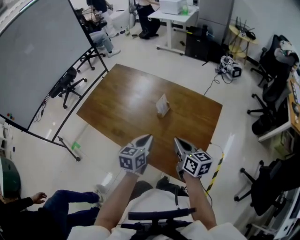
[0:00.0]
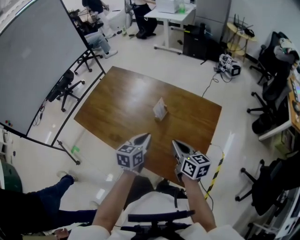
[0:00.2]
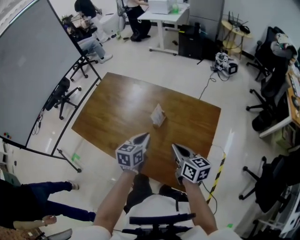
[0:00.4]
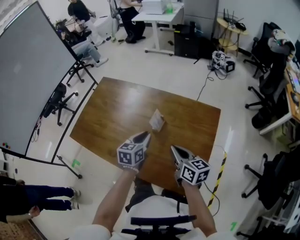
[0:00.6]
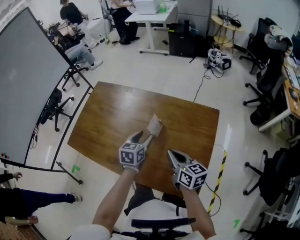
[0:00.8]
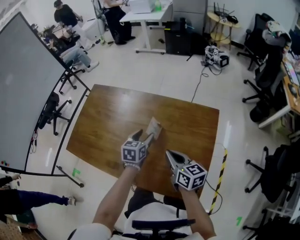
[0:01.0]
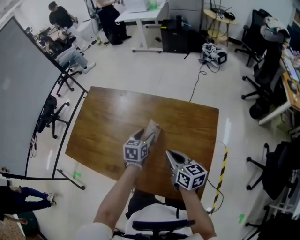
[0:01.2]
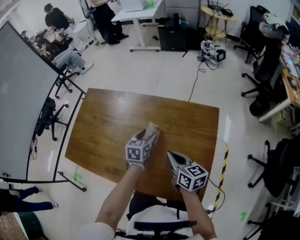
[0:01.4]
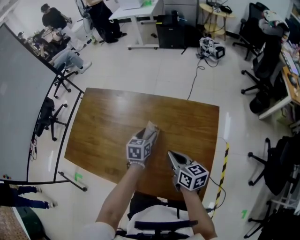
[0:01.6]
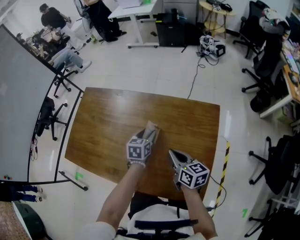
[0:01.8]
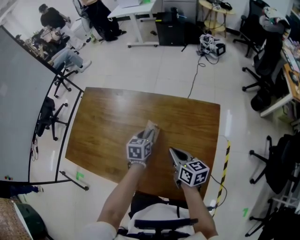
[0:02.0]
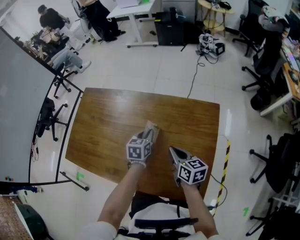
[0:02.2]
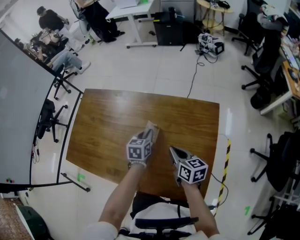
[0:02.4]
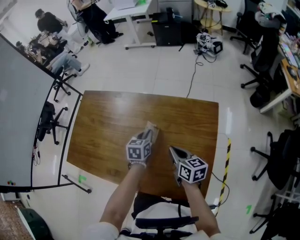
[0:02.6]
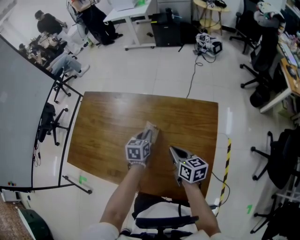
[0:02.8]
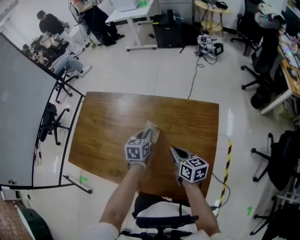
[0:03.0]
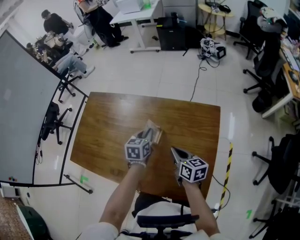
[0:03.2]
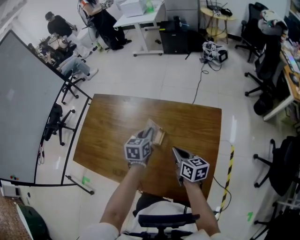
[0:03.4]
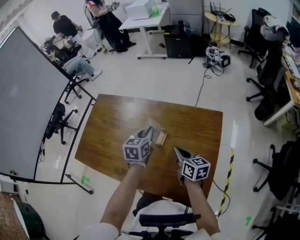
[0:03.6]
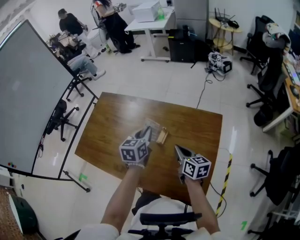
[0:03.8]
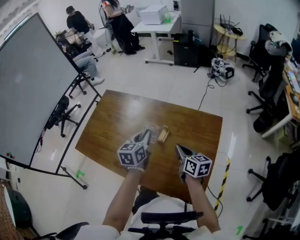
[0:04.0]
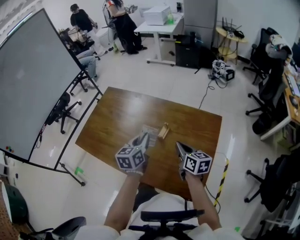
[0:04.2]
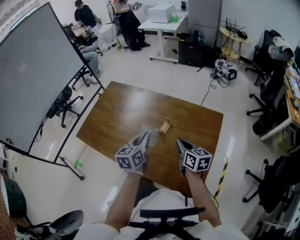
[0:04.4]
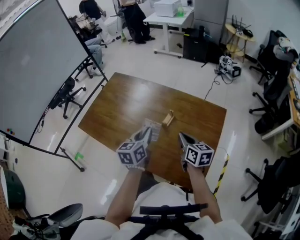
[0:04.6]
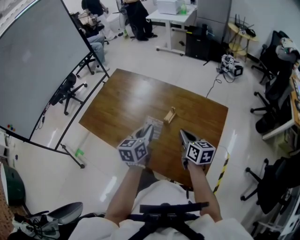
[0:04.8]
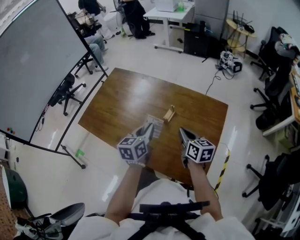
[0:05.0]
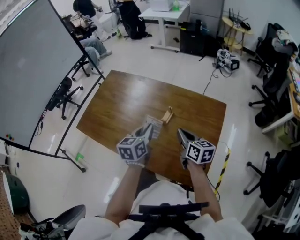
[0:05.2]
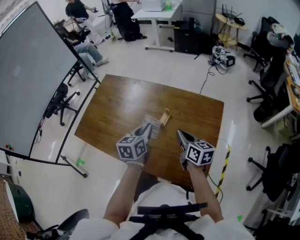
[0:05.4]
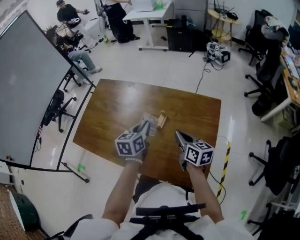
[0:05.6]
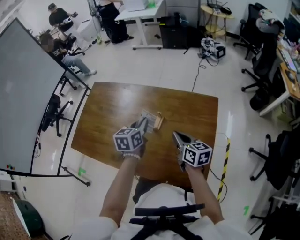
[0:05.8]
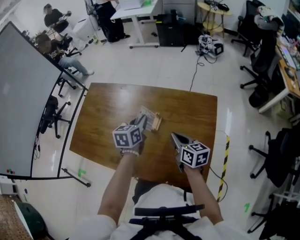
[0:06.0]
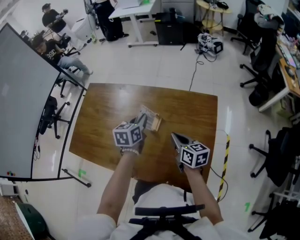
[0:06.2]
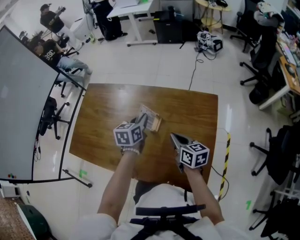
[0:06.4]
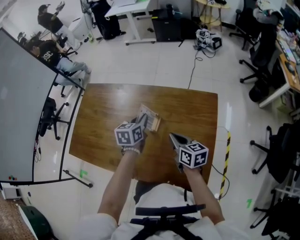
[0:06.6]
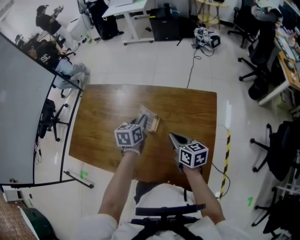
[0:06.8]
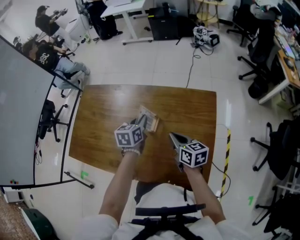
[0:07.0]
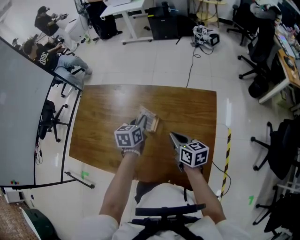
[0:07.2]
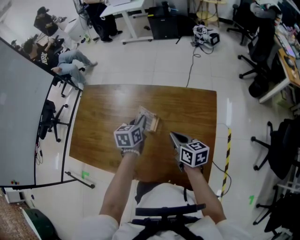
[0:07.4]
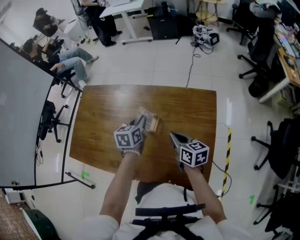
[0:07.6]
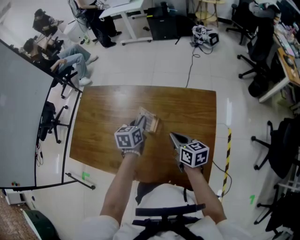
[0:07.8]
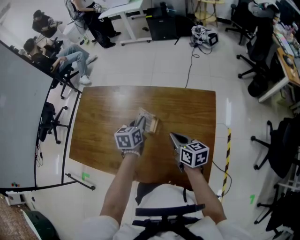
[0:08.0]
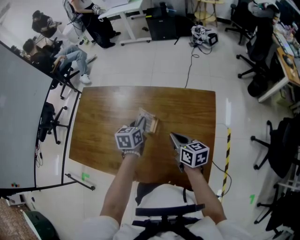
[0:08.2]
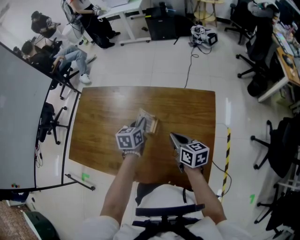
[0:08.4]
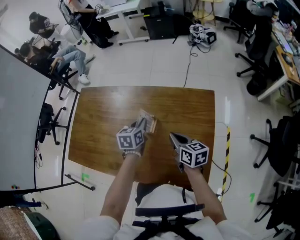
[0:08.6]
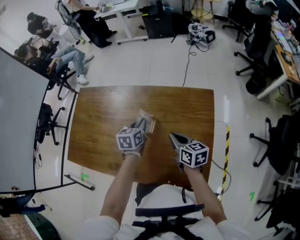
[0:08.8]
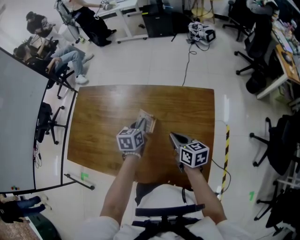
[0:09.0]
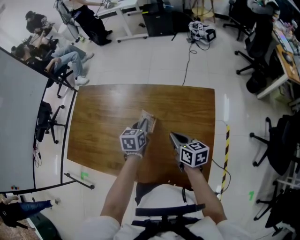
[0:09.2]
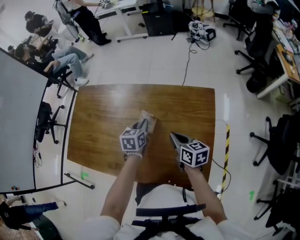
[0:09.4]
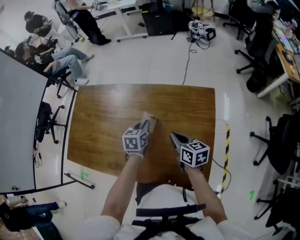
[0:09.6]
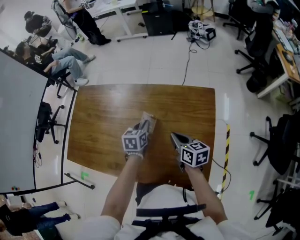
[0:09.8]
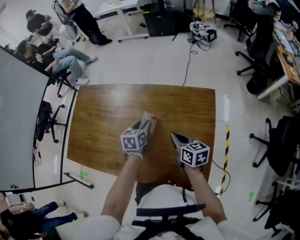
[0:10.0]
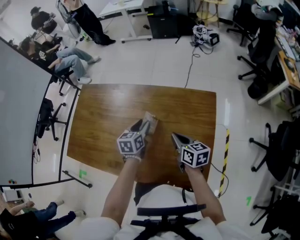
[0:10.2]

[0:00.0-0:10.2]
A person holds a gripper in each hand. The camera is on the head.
0:00.0 to 0:01.4: The left gripper heads forward and downward, covering approximately 25 cm, and opens, while the right gripper moves forward and downward, roughly 15 cm.
0:01.4 to 0:03.0: The left gripper closes its fingers, while the right gripper shifts by approximately 5 cm.
0:03.0 to 0:04.4: The left gripper heads upward, backward and to the left, covering roughly 20 cm, and changes its angle by about 20 degrees. Meanwhile the right gripper travels upward by some 5 cm.
0:04.4 to 0:05.8: The left gripper shifts roughly 10 cm forward.
0:05.8 to 0:07.2: The left gripper is displaced downward and forward by roughly 10 cm.
0:07.2 to 0:08.8: The grippers make only small movements.
0:08.8 to 0:10.2: The left gripper opens up.

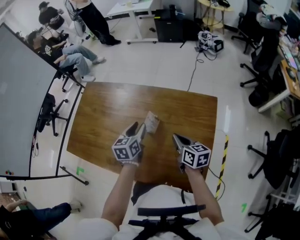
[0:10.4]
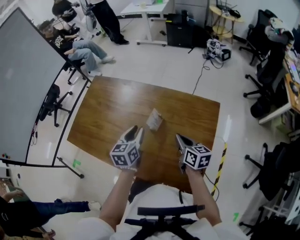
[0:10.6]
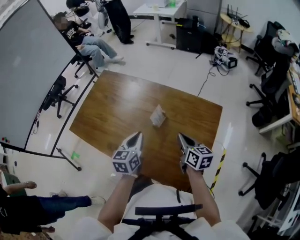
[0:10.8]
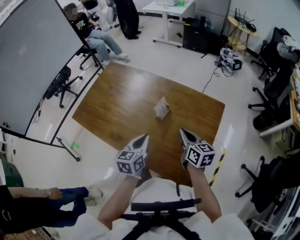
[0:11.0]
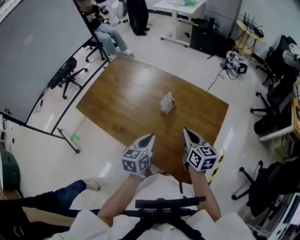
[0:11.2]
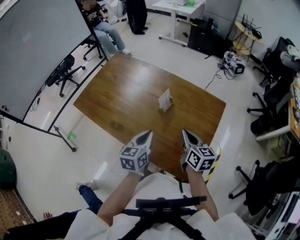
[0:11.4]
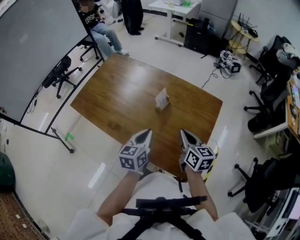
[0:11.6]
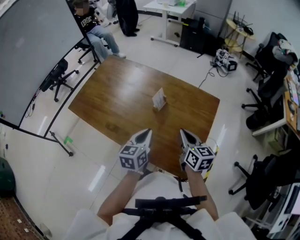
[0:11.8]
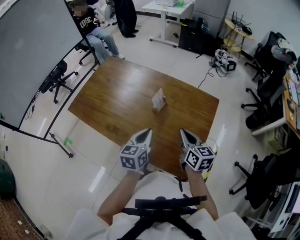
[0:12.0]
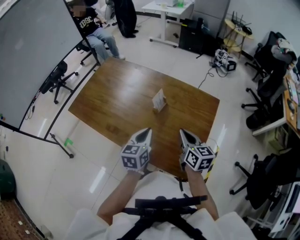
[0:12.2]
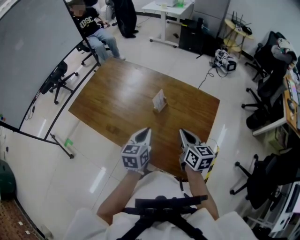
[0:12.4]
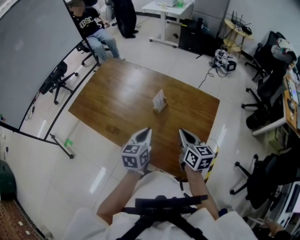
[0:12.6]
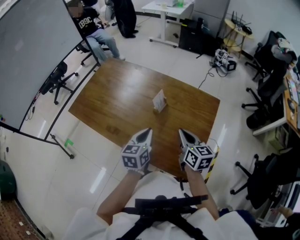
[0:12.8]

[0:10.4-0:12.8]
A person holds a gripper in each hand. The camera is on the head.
0:10.4 to 0:11.6: The left gripper shifts approximately 20 cm backward, and closes. Meanwhile the right gripper travels backward and upward by roughly 15 cm.
0:11.6 to 0:12.8: There are only small adjustments of the grippers.

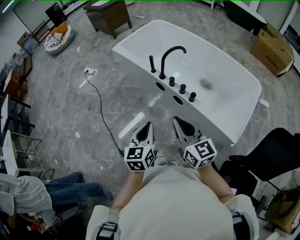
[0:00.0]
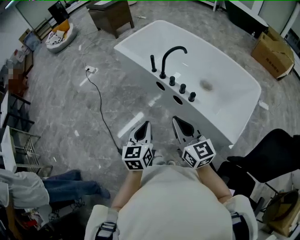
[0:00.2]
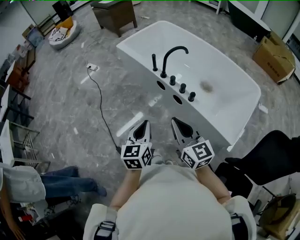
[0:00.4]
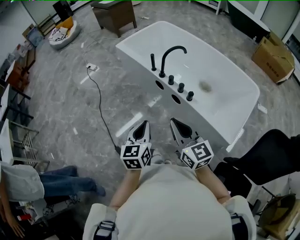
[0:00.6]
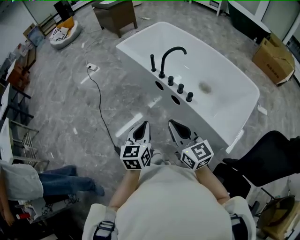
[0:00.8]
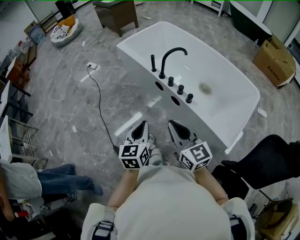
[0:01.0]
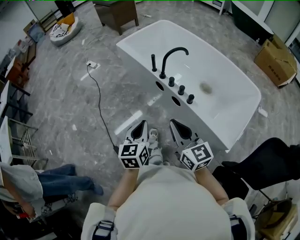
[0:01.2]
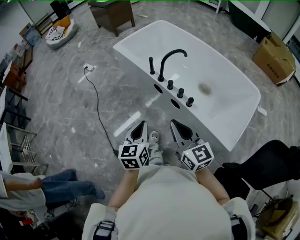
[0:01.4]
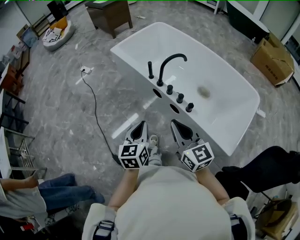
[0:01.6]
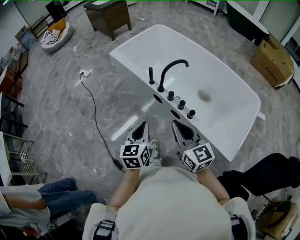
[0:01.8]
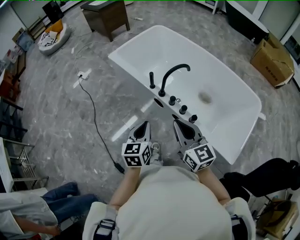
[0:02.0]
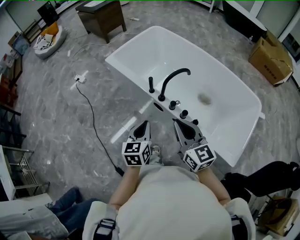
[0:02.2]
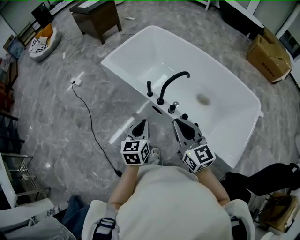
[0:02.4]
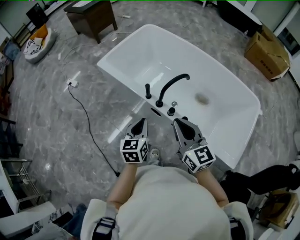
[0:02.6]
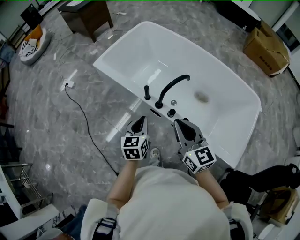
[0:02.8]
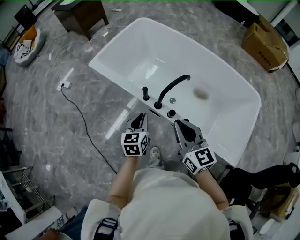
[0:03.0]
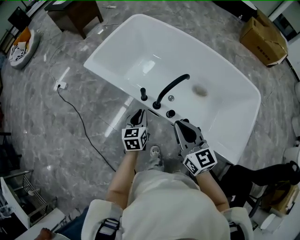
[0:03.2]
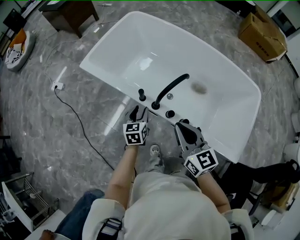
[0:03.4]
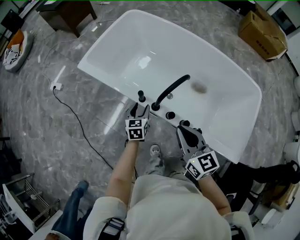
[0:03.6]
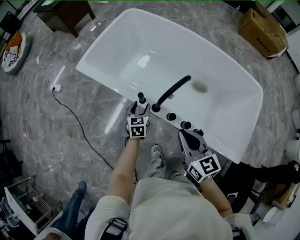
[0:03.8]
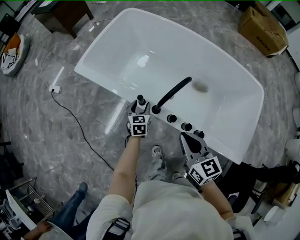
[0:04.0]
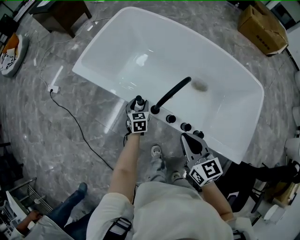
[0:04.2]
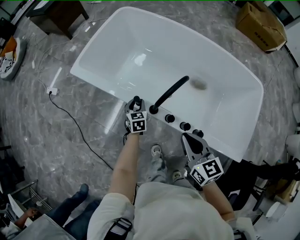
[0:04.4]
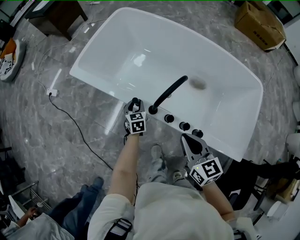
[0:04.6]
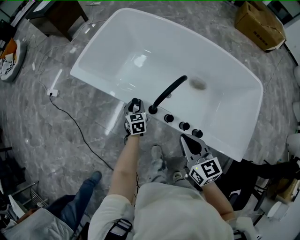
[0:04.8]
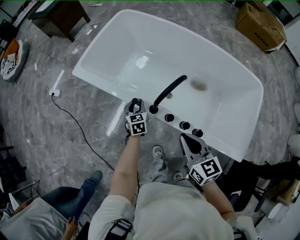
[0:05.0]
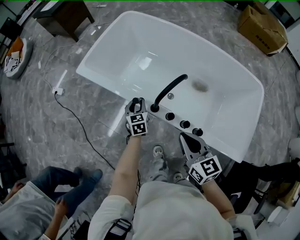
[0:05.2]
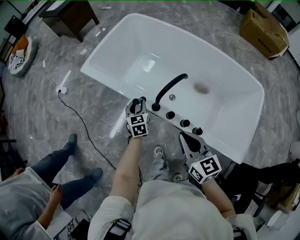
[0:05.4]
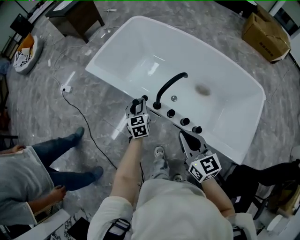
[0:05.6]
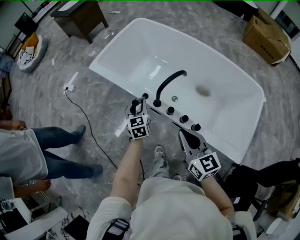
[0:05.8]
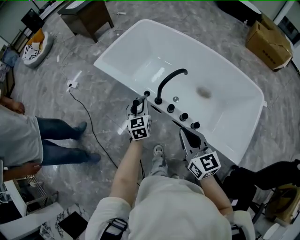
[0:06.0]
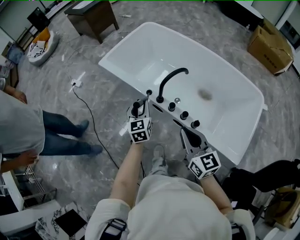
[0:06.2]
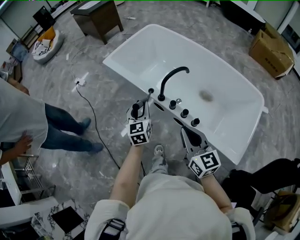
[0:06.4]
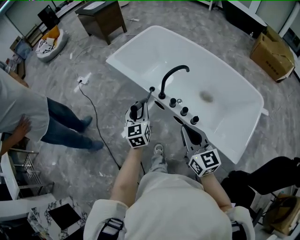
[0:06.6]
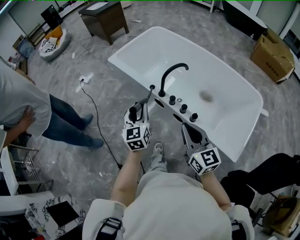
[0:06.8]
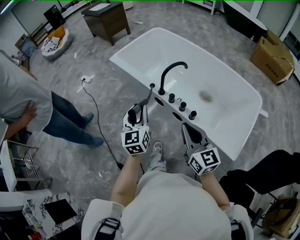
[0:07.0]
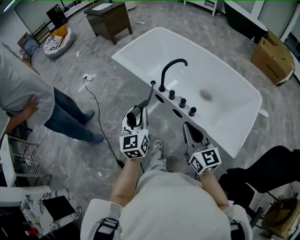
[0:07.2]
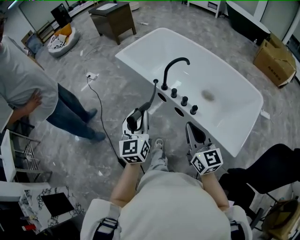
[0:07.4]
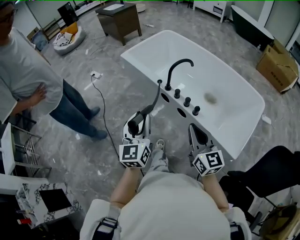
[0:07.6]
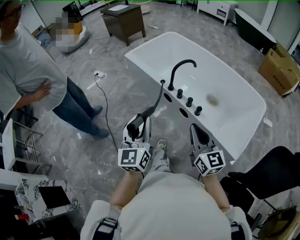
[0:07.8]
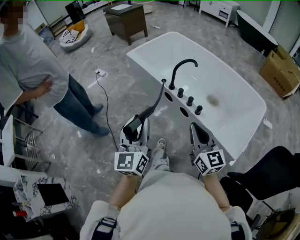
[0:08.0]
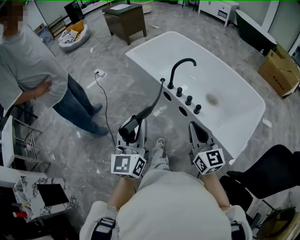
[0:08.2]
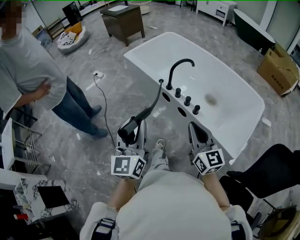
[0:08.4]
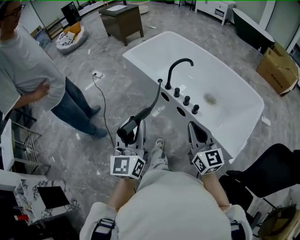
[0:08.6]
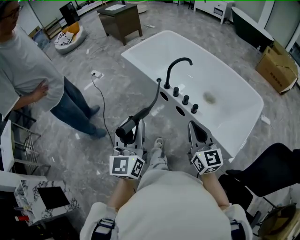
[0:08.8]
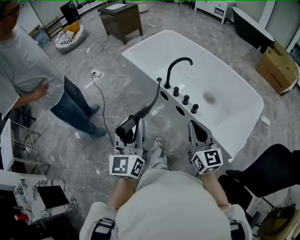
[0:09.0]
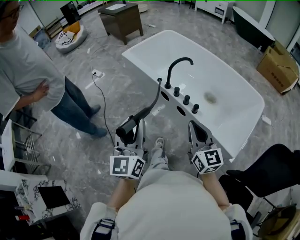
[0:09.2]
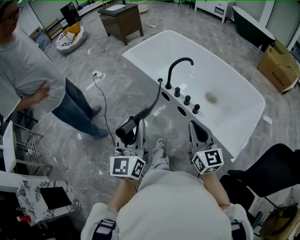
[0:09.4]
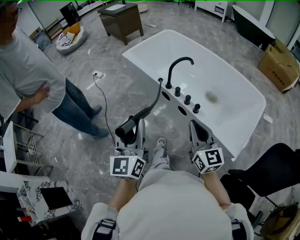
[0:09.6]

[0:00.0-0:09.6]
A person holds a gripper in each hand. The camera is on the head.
0:00.0 to 0:01.6: Both grippers move forward, approximately 5 cm.
0:01.6 to 0:03.2: Both grippers move forward, roughly 30 cm.
0:03.2 to 0:04.8: The right gripper goes roughly 5 cm downward, while the left gripper travels downward and forward by approximately 20 cm, and opens up.
0:04.8 to 0:06.4: The right gripper is displaced backward and upward by roughly 15 cm, while the left gripper travels upward and backward by about 30 cm, and rotates roughly 30 degrees.
0:06.4 to 0:08.0: The right gripper travels backward by approximately 20 cm; the left gripper travels backward and upward by some 35 cm, and swivels roughly 20 degrees.
0:08.0 to 0:09.6: The grippers make only small movements.

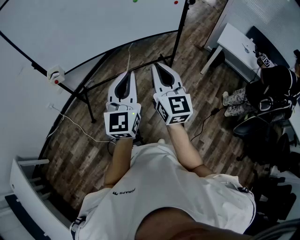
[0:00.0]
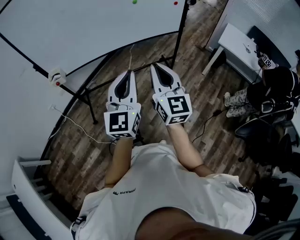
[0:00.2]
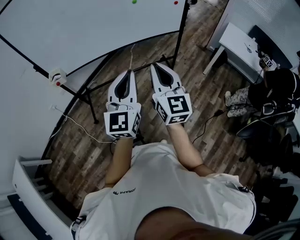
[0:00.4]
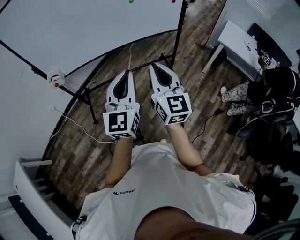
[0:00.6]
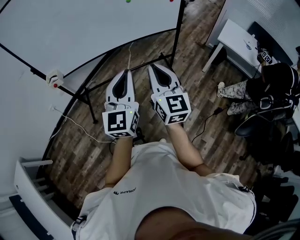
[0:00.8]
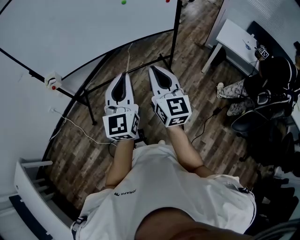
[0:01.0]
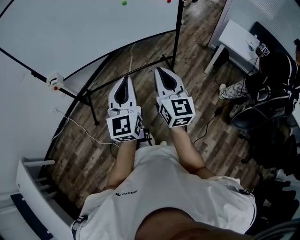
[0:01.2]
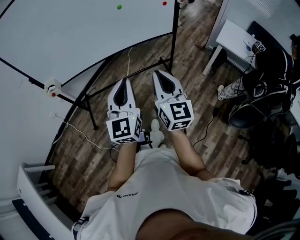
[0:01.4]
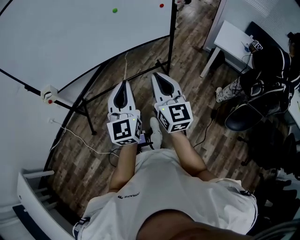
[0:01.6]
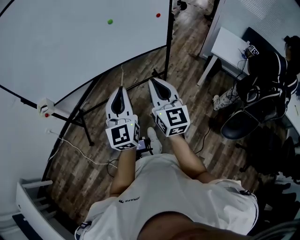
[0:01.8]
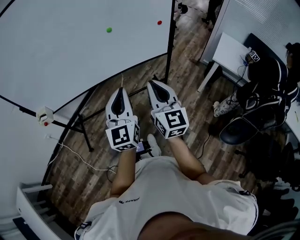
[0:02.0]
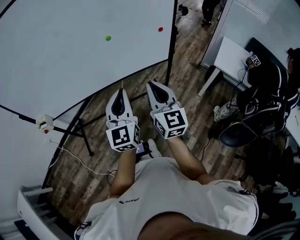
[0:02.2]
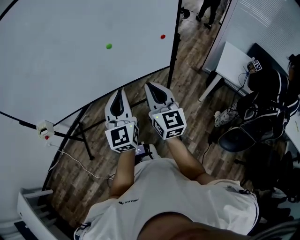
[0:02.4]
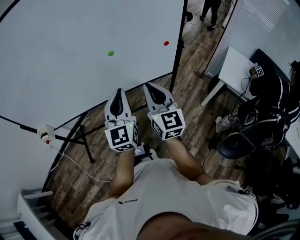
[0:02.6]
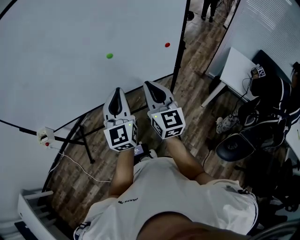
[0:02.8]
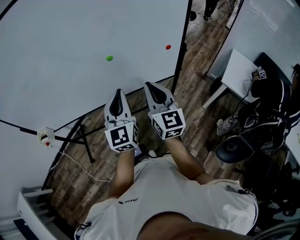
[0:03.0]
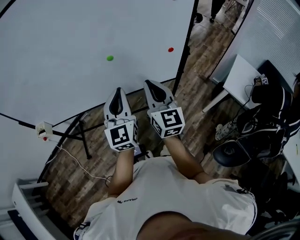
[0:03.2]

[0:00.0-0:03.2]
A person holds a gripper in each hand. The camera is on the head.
0:00.0 to 0:01.6: The grippers both shift to the right and forward by some 10 cm.
0:01.6 to 0:03.2: Both grippers travel together forward, some 35 cm.
